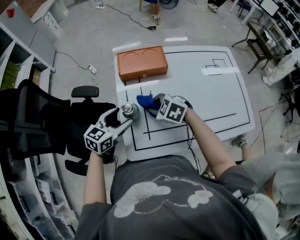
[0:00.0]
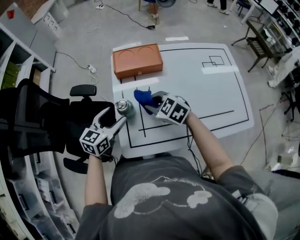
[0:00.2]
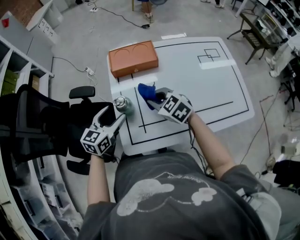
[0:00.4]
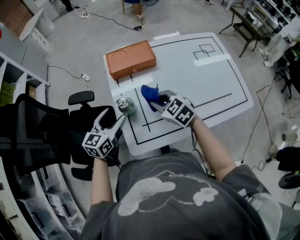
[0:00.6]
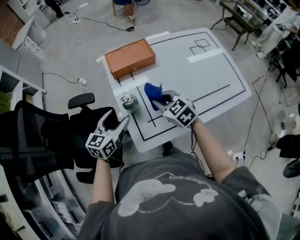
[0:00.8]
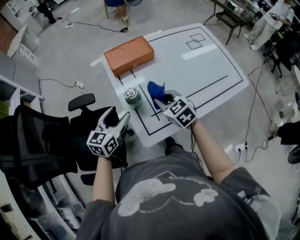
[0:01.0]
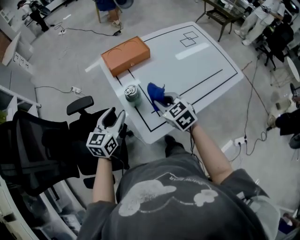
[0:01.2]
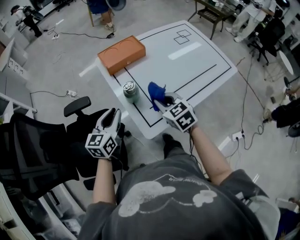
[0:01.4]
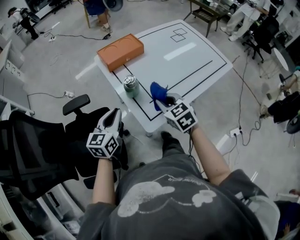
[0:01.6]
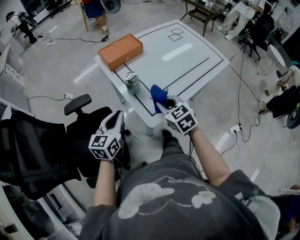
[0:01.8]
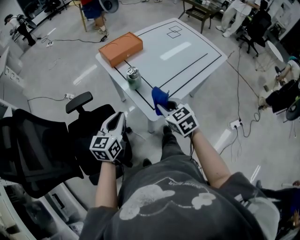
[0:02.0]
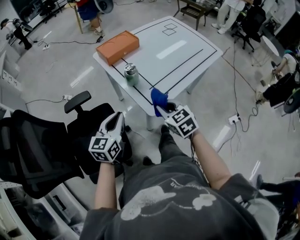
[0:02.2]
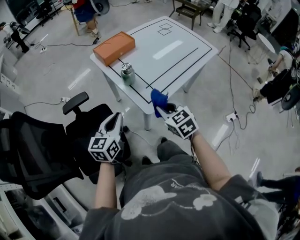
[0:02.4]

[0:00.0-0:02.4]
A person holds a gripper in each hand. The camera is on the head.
0:00.0 to 0:01.2: The left gripper changes place by approximately 5 cm, while the right gripper changes place by some 10 cm, and turns by some 50 degrees.
0:01.2 to 0:02.4: Both grippers travel together backward, about 15 cm. The left gripper closes its fingers.

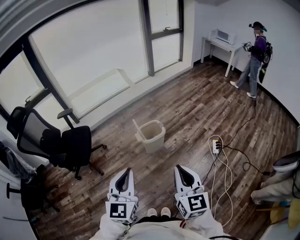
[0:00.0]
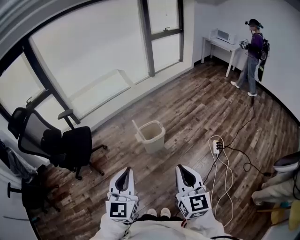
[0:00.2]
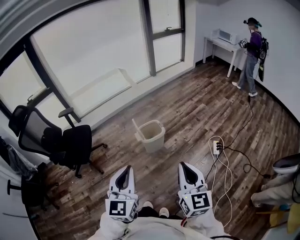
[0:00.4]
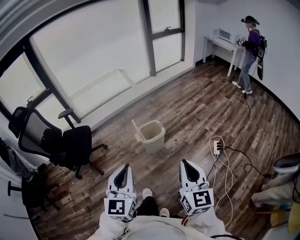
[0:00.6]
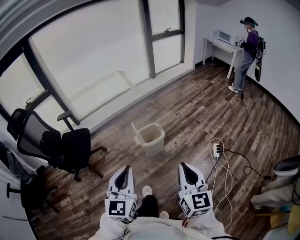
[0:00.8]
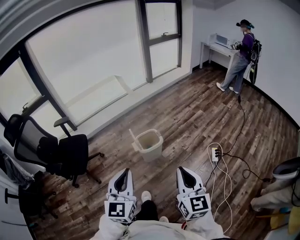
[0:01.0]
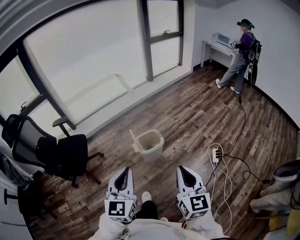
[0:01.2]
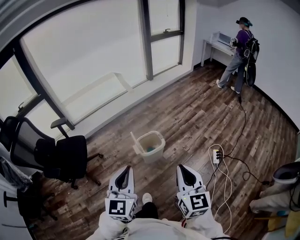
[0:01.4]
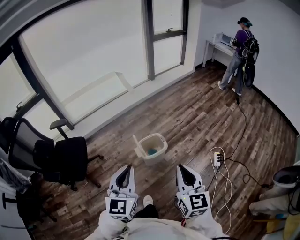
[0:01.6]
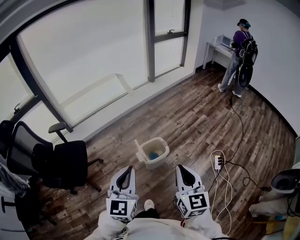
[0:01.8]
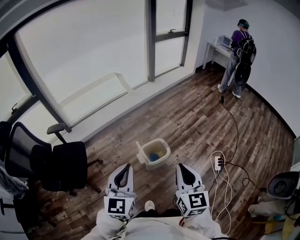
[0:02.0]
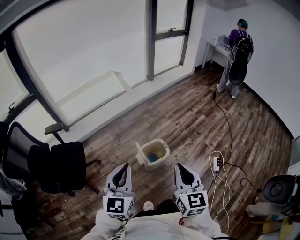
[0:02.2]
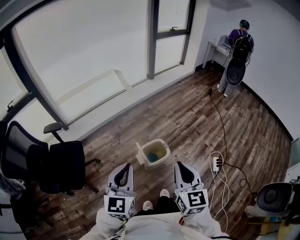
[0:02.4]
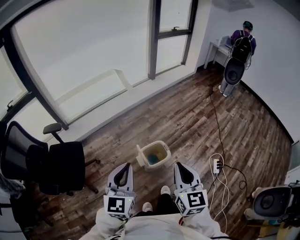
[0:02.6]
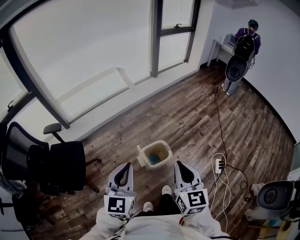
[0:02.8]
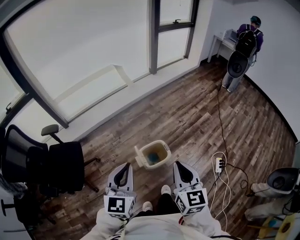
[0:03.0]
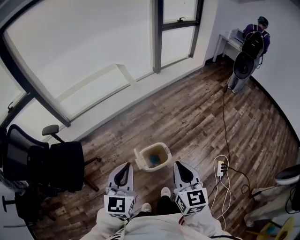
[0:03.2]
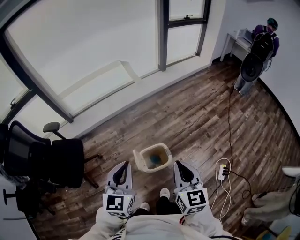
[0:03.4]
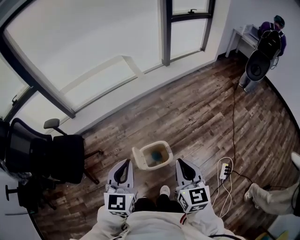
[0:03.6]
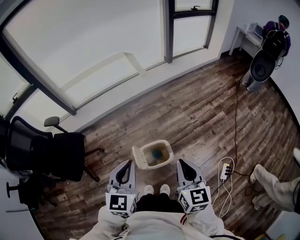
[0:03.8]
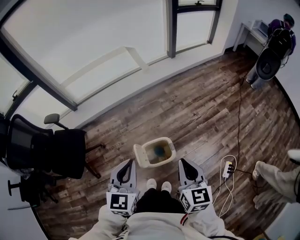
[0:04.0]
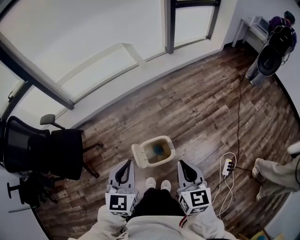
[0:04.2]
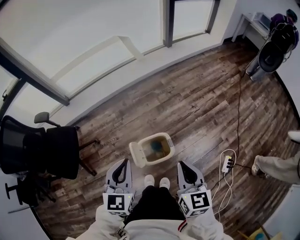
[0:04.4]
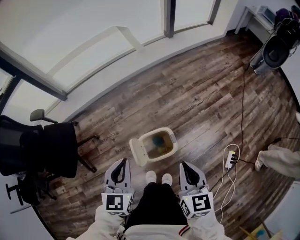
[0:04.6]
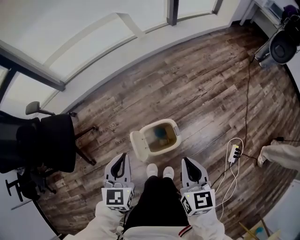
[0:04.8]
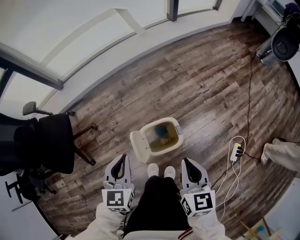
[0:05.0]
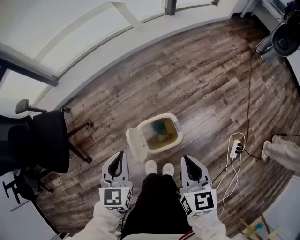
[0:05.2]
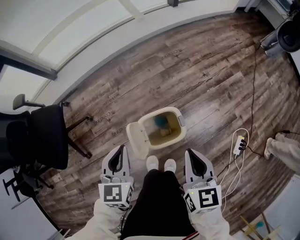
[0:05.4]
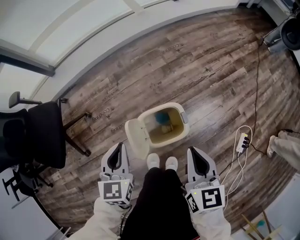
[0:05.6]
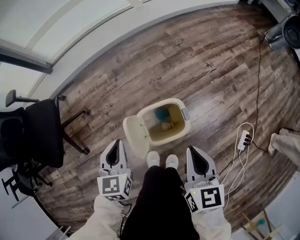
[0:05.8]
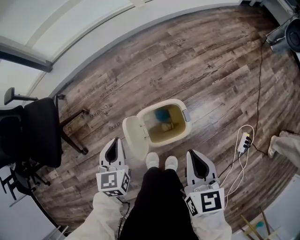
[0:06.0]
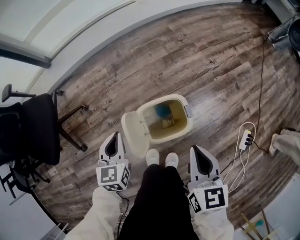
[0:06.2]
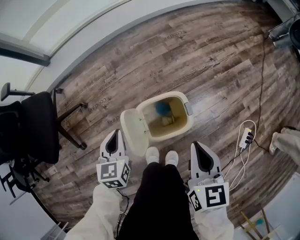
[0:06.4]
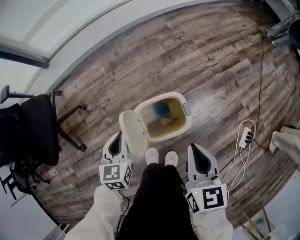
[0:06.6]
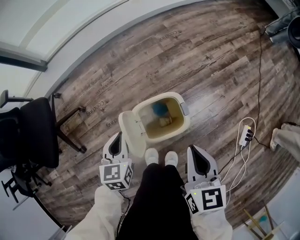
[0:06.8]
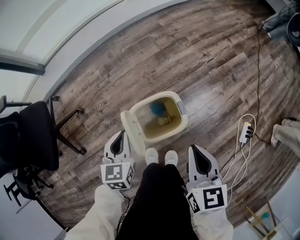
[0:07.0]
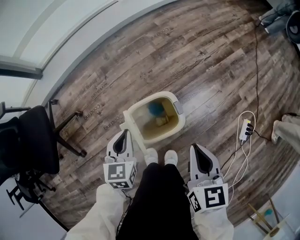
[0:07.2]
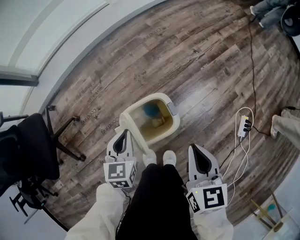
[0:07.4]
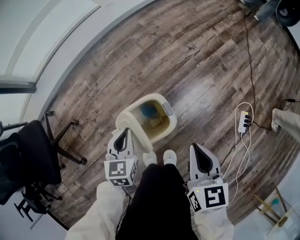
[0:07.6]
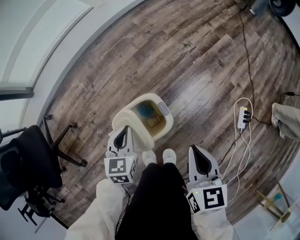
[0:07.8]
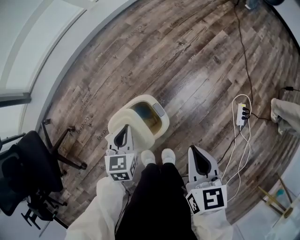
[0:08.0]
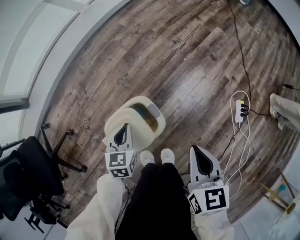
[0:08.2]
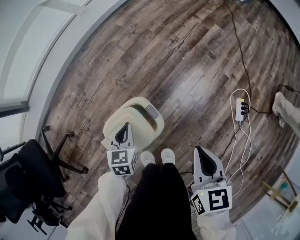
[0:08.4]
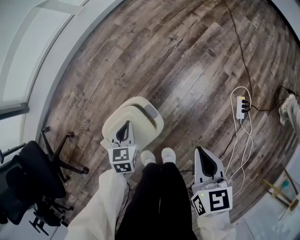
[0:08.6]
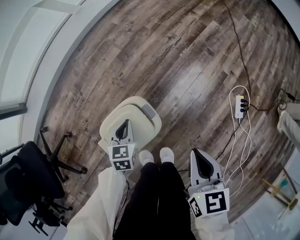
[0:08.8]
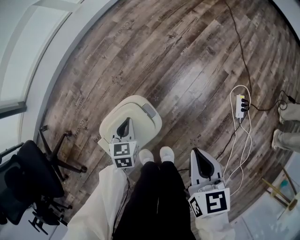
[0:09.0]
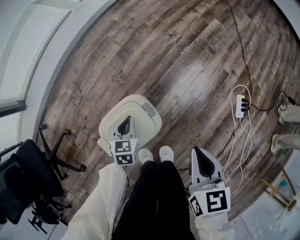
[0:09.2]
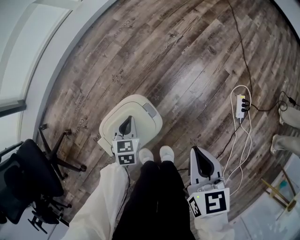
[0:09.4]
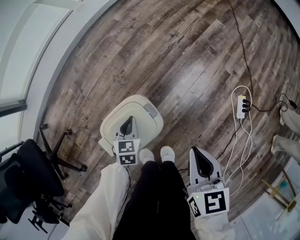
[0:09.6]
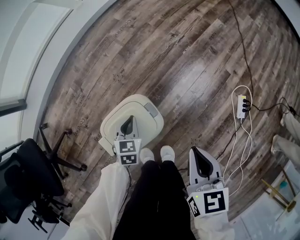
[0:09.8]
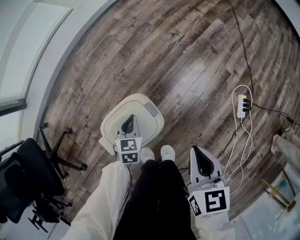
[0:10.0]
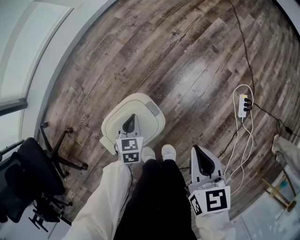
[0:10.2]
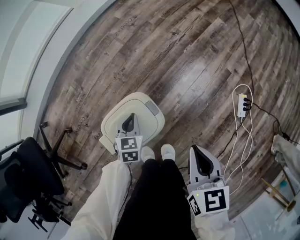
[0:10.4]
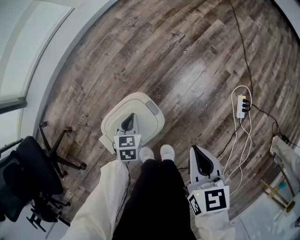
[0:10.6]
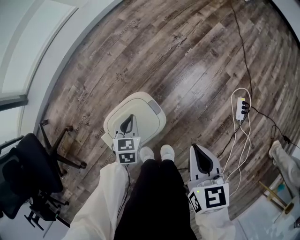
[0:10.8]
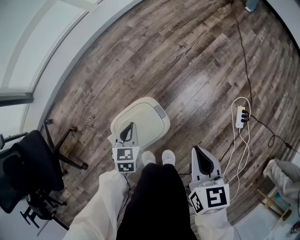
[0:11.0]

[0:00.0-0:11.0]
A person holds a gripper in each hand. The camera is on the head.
0:00.0 to 0:01.6: Both grippers travel together forward, roughly 20 cm.
0:01.6 to 0:03.2: Both grippers move forward, about 25 cm.
0:03.2 to 0:04.8: Both grippers travel together downward and forward, about 25 cm.
0:04.8 to 0:06.2: Both grippers travel together downward, roughly 20 cm.
0:06.2 to 0:07.8: The left gripper shifts roughly 15 cm to the right and downward, and rotates some 20 degrees; the right gripper shifts about 10 cm to the right.
0:07.8 to 0:09.4: The right gripper heads to the right, covering roughly 5 cm. Meanwhile the left gripper goes about 15 cm downward and to the right.
0:09.4 to 0:11.0: The left gripper travels upward by approximately 10 cm.

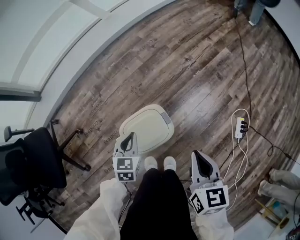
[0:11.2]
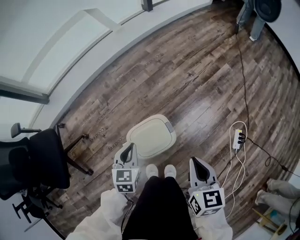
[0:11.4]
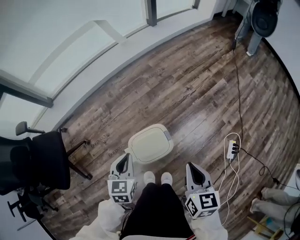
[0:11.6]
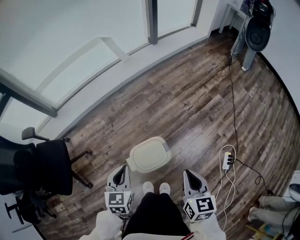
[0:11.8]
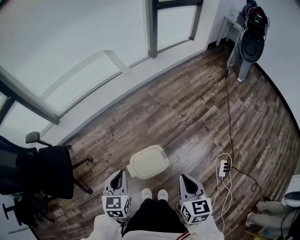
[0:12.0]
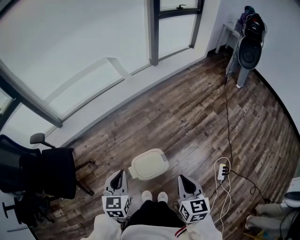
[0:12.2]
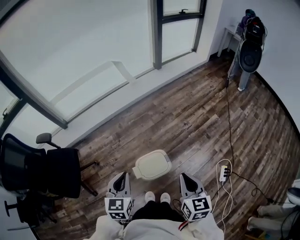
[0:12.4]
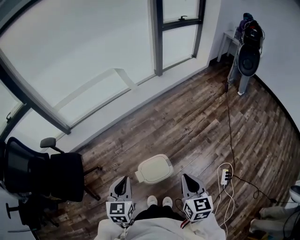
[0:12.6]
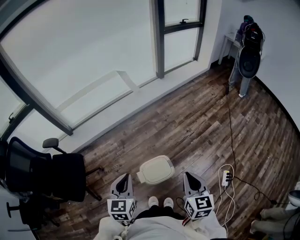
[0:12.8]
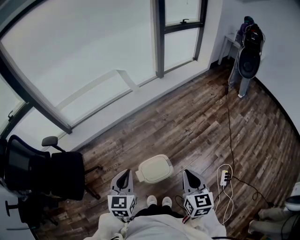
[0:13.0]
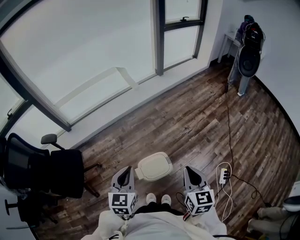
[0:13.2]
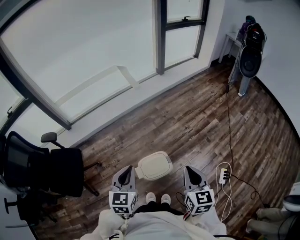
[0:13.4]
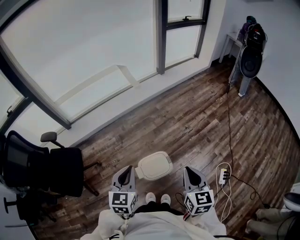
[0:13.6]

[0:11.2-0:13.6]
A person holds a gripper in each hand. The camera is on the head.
0:11.2 to 0:12.4: Both grippers move upward, some 35 cm. The left gripper swivels about 20 degrees.
0:12.4 to 0:13.6: There are only small adjustments of the grippers.

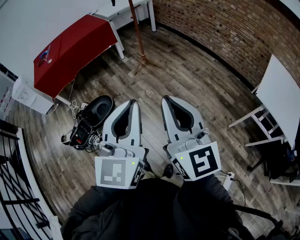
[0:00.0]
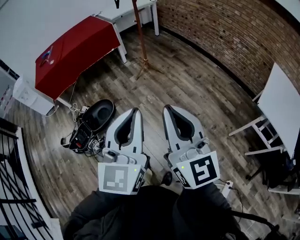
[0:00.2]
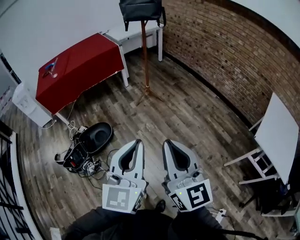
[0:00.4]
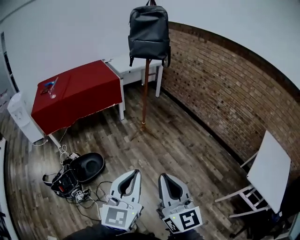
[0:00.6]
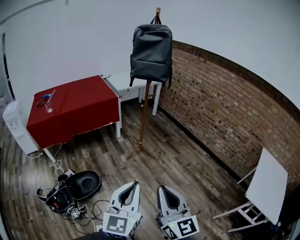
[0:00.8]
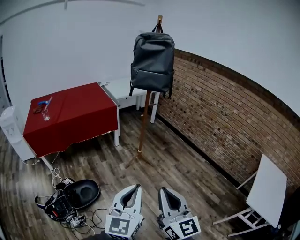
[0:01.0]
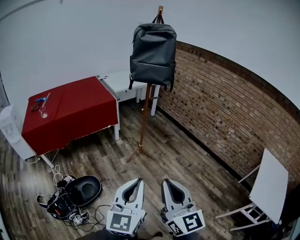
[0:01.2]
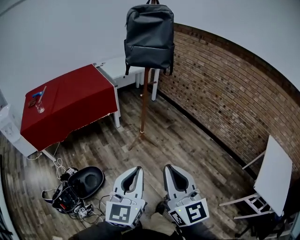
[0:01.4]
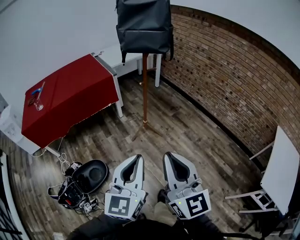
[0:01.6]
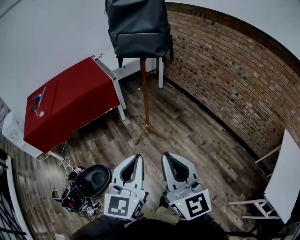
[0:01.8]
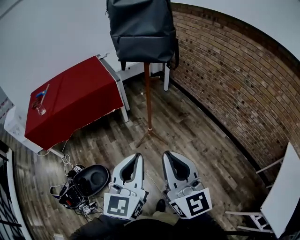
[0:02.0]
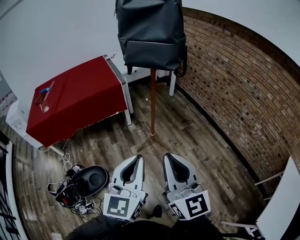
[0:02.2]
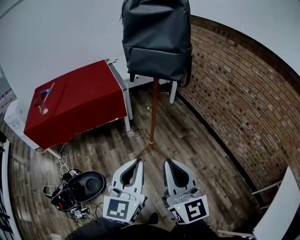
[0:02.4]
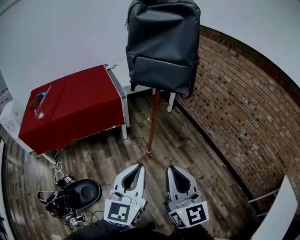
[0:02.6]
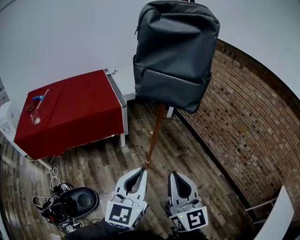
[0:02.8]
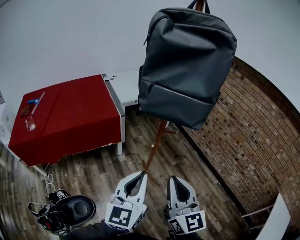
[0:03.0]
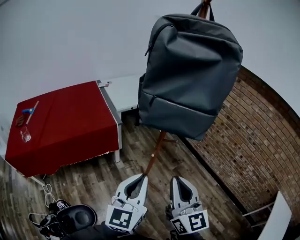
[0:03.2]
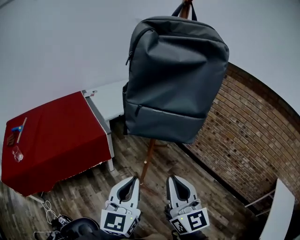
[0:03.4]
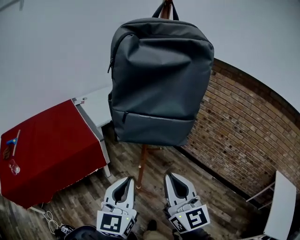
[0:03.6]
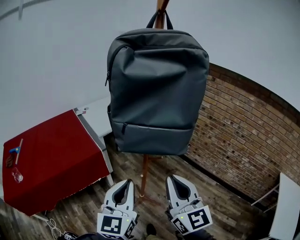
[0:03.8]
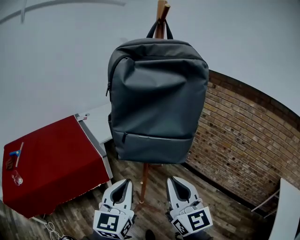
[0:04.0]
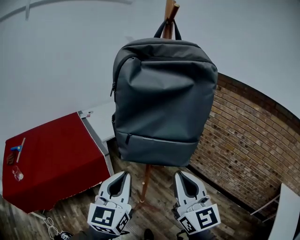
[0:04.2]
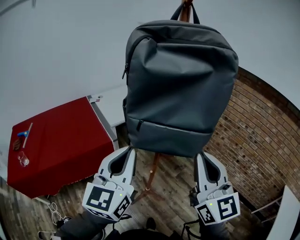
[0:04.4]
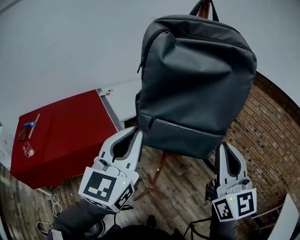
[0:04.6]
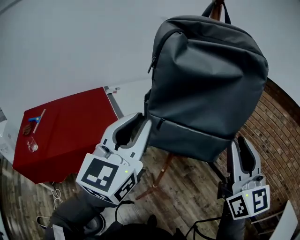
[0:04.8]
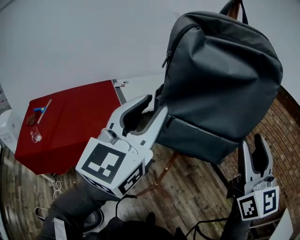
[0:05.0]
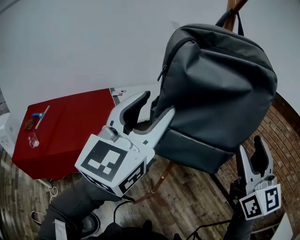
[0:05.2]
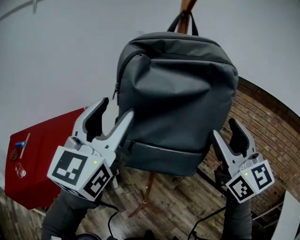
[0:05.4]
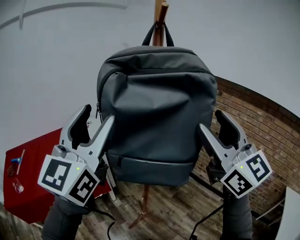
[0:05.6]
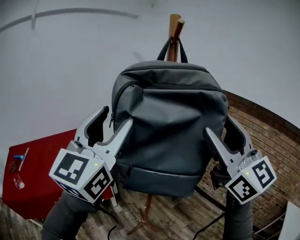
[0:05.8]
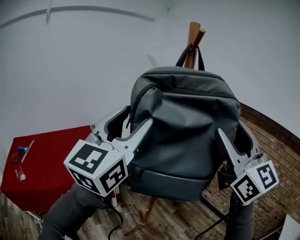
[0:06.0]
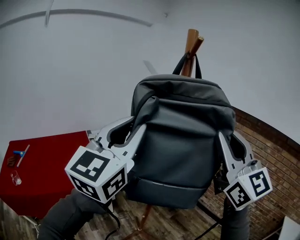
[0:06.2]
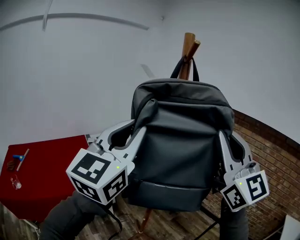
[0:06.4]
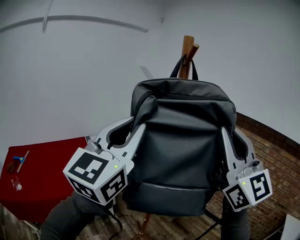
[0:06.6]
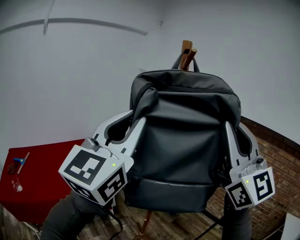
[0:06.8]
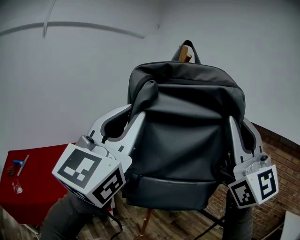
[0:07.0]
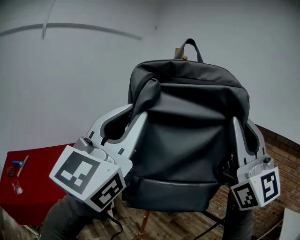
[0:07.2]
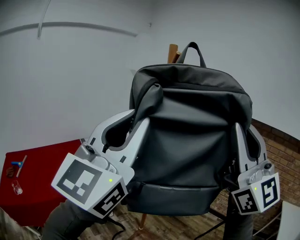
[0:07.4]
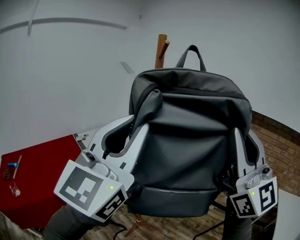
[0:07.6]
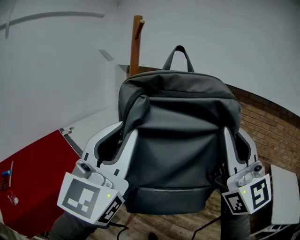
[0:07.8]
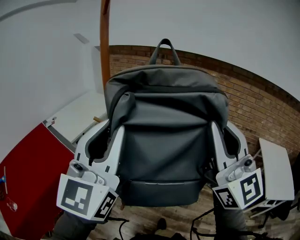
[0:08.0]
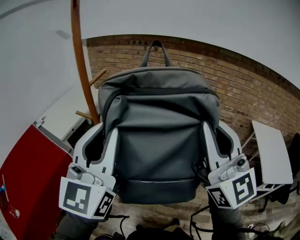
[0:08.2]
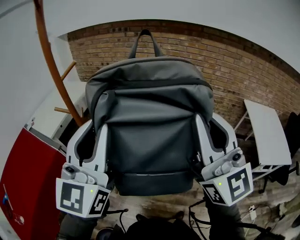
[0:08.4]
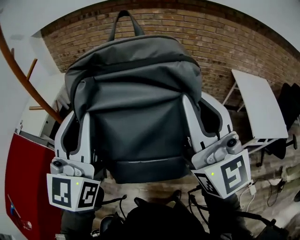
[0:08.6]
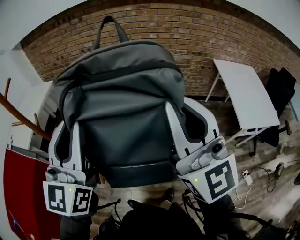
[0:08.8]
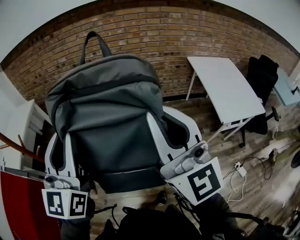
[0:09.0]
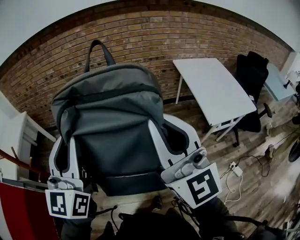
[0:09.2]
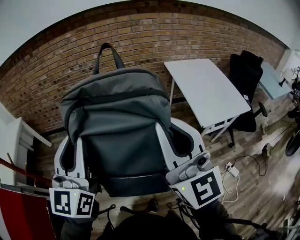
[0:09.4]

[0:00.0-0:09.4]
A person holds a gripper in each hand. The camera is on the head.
0:00.0 to 0:01.6: Both grippers travel together forward, roughly 40 cm.
0:01.6 to 0:03.2: The two grippers travel together, forward, some 40 cm.
0:03.2 to 0:04.8: The left gripper heads upward and forward, covering approximately 25 cm, while the right gripper goes roughly 25 cm upward, forward and to the right.
0:04.8 to 0:06.2: The two grippers go some 15 cm upward and forward. The right gripper opens and closes again. The left gripper opens and closes again.
0:06.2 to 0:07.8: Both grippers move backward, about 20 cm.
0:07.8 to 0:09.4: The two grippers travel together, some 50 cm. The right gripper swivels approximately 40 degrees, while the left gripper turns by approximately 40 degrees.
